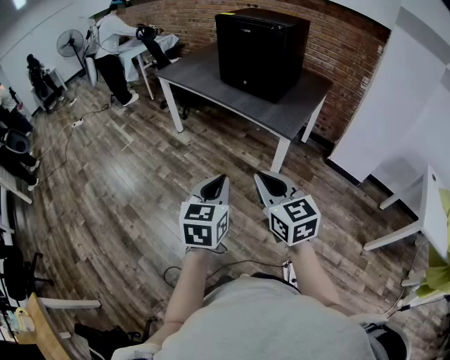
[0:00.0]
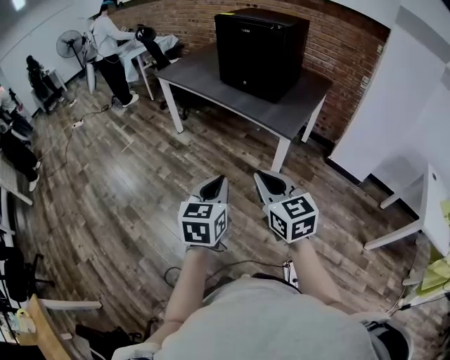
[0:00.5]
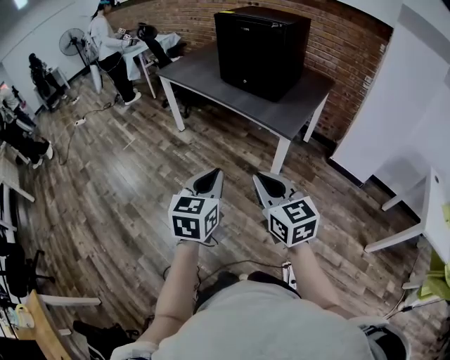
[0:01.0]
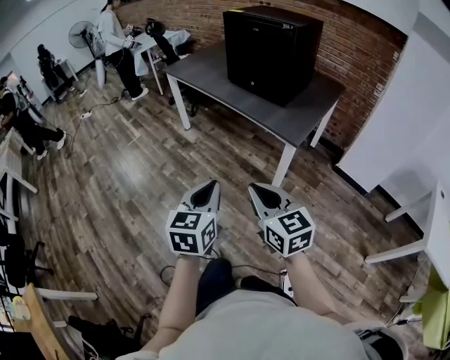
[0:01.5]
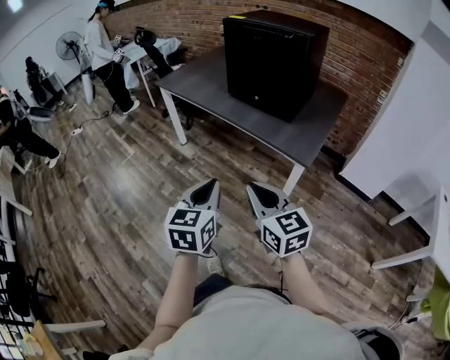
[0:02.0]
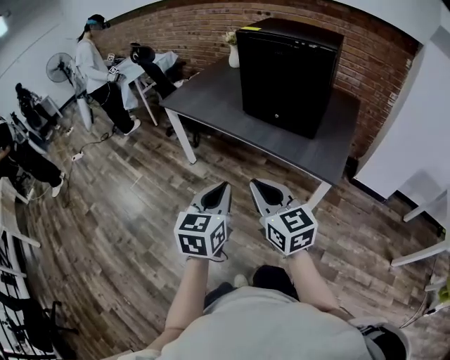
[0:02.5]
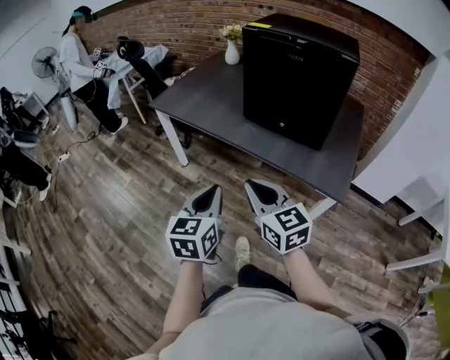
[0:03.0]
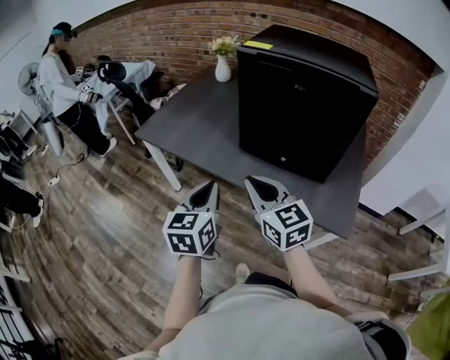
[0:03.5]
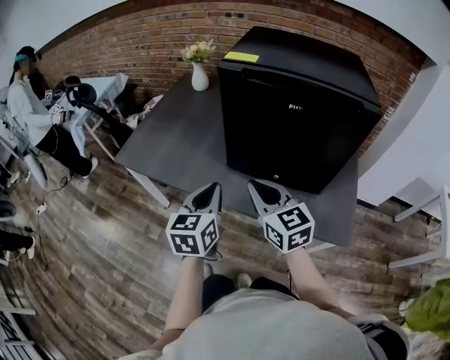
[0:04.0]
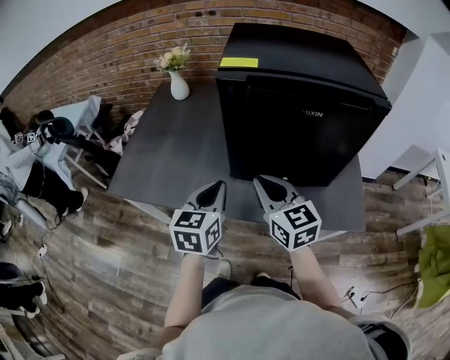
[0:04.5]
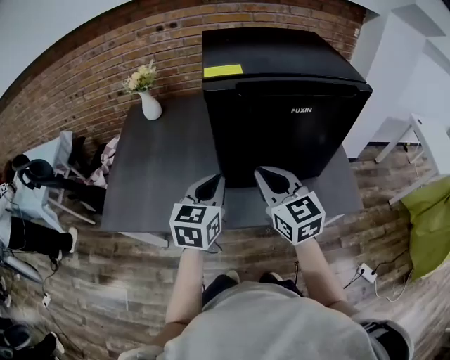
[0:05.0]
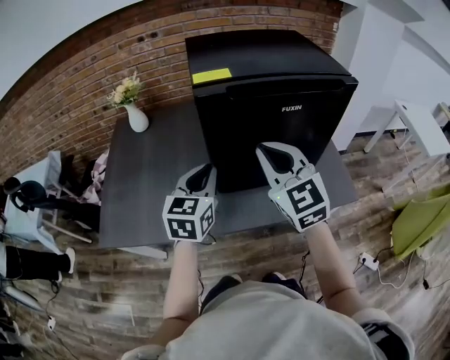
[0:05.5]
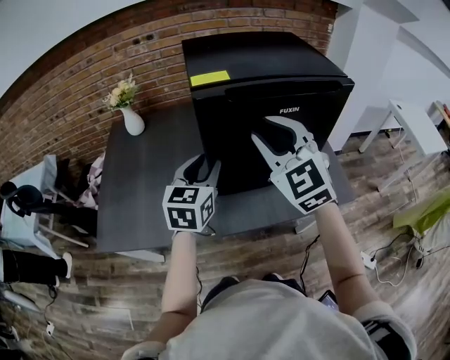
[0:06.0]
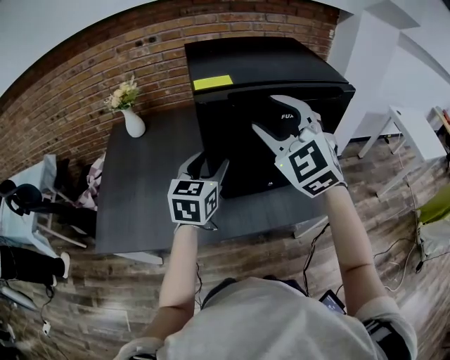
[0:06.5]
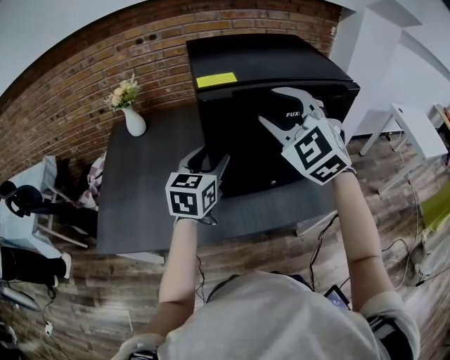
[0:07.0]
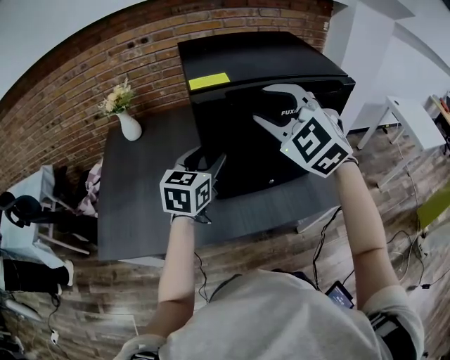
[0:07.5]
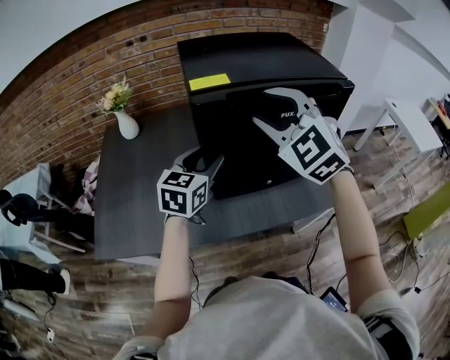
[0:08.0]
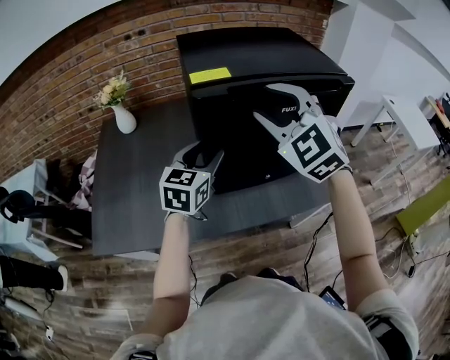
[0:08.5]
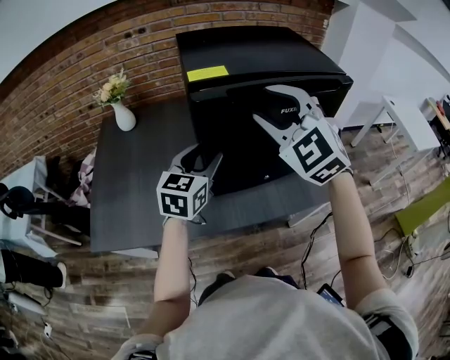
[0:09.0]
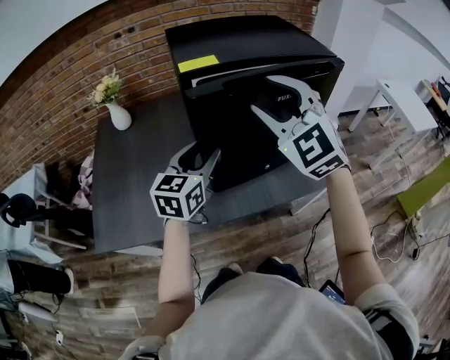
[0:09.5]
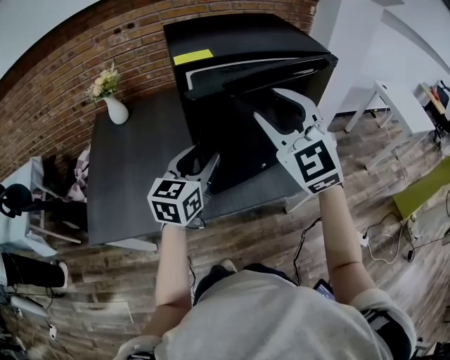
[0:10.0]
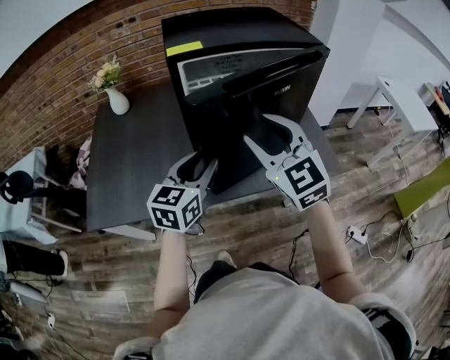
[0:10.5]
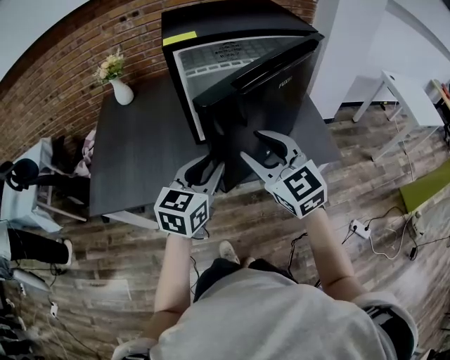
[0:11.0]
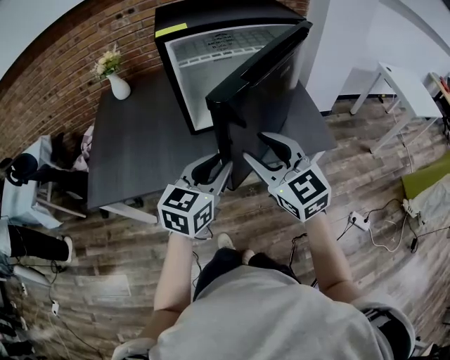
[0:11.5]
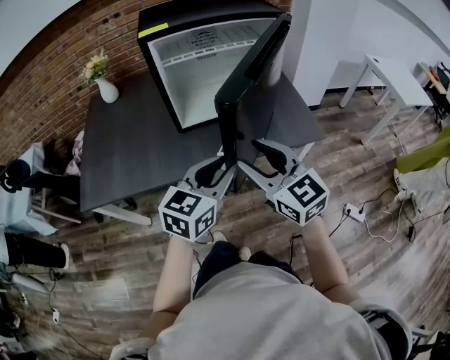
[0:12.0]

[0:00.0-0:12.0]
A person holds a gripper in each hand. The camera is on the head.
0:00.0 to 0:02.0: The two grippers go some 20 cm forward.
0:02.0 to 0:04.0: The two grippers travel together, forward, about 60 cm.
0:04.0 to 0:06.0: The right gripper heads upward, covering about 15 cm, turns by about 50 degrees, and opens up. Meanwhile the left gripper moves about 20 cm, swivels about 30 degrees, and opens its fingers.
0:06.0 to 0:08.0: The right gripper ends up some 5 cm from where it was.
0:08.0 to 0:10.0: Both grippers travel together backward, approximately 5 cm.
0:10.0 to 0:12.0: The right gripper is displaced backward and downward by roughly 25 cm, and swivels approximately 40 degrees; the left gripper goes roughly 25 cm backward and to the right, and closes.

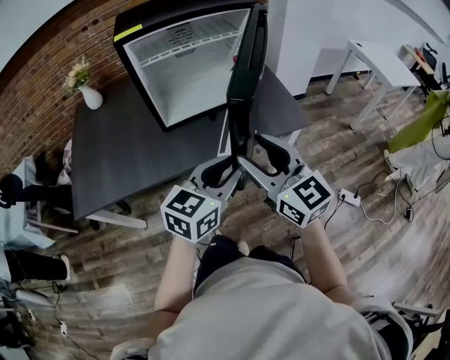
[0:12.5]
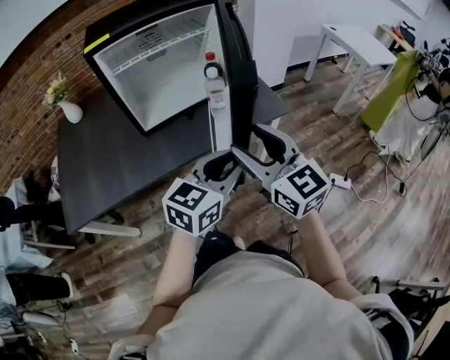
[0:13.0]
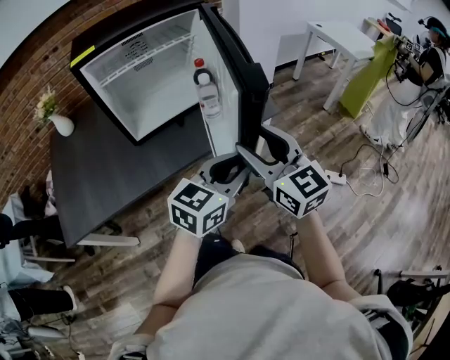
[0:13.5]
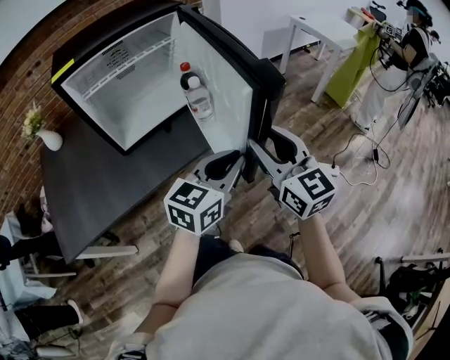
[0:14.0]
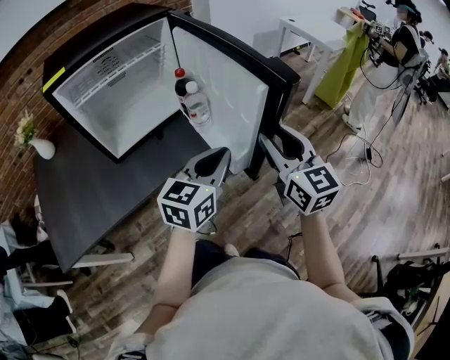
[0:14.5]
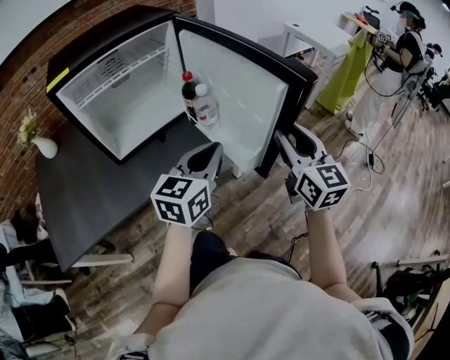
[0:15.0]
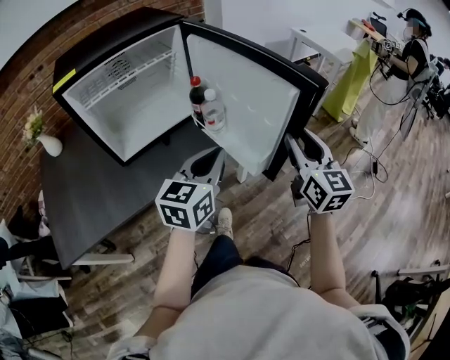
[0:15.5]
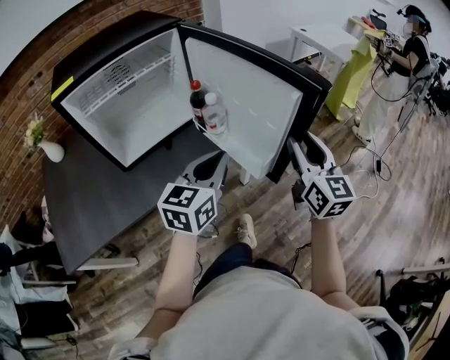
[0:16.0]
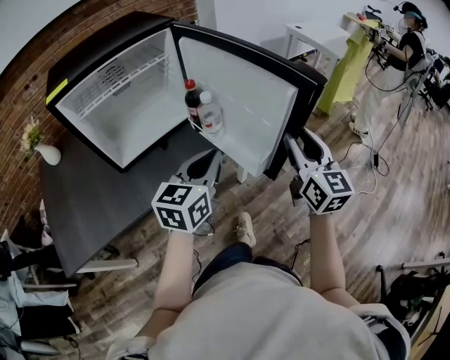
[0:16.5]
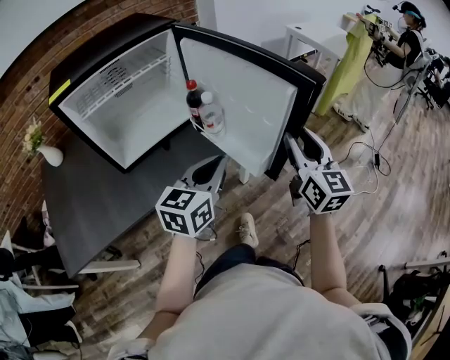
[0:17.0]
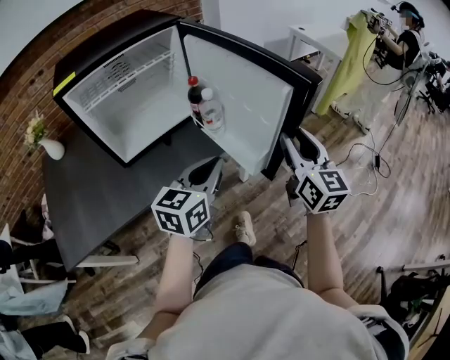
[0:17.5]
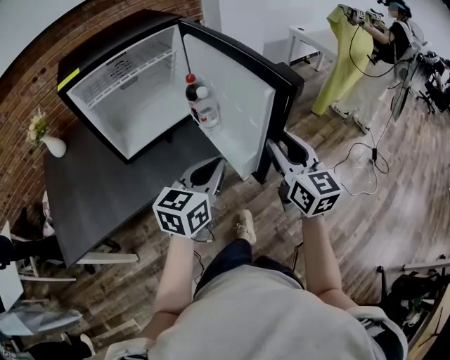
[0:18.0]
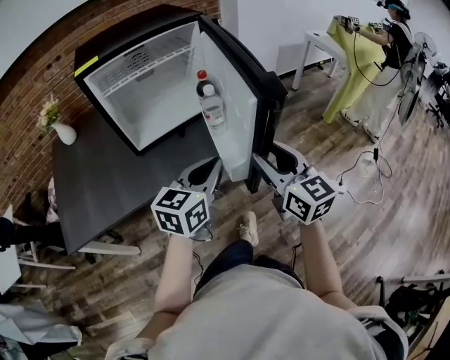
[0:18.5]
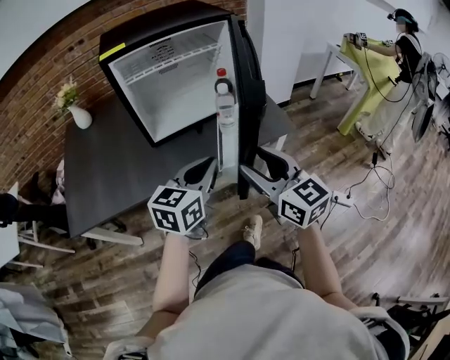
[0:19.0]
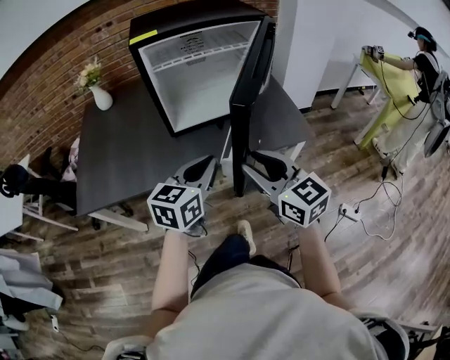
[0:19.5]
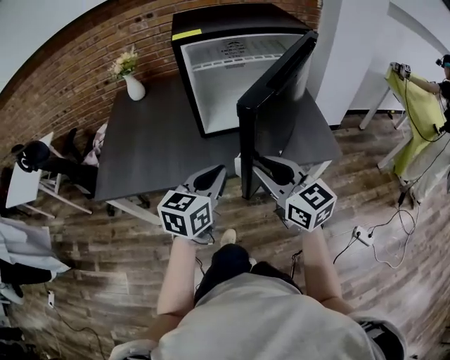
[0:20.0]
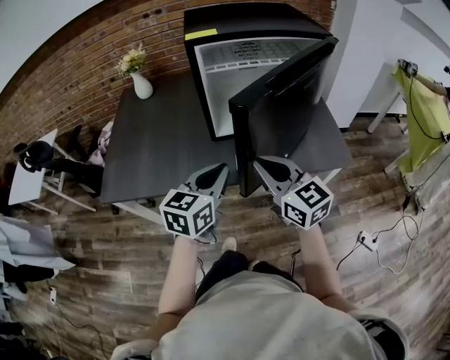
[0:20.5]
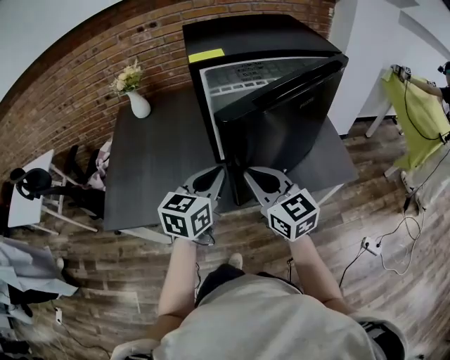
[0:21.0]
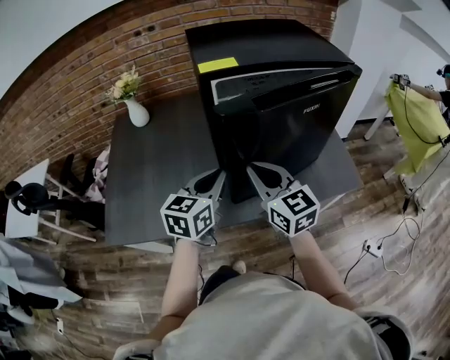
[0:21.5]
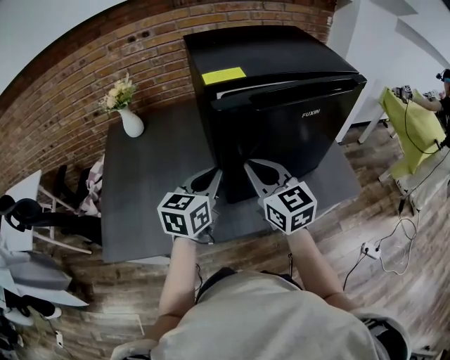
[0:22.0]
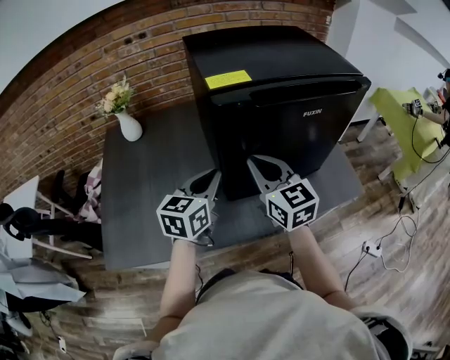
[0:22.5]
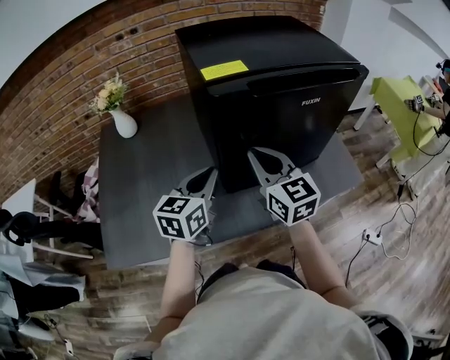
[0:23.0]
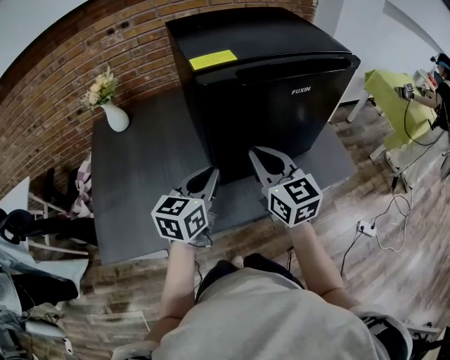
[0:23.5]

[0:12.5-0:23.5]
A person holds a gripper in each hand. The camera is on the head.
0:12.5 to 0:14.5: The right gripper moves to the right, about 20 cm, and turns by approximately 30 degrees. The left gripper travels to the right and forward by approximately 10 cm, and closes.
0:14.5 to 0:16.0: The right gripper heads to the right, covering some 5 cm.
0:16.0 to 0:18.0: The right gripper changes place by some 5 cm; the left gripper shifts roughly 5 cm backward.
0:18.0 to 0:20.0: The left gripper ends up roughly 20 cm from where it was, and changes its angle by about 30 degrees. The right gripper ends up about 25 cm from where it was, and rotates some 50 degrees.
0:20.0 to 0:21.5: Both grippers move forward and to the left, roughly 20 cm. The right gripper closes.

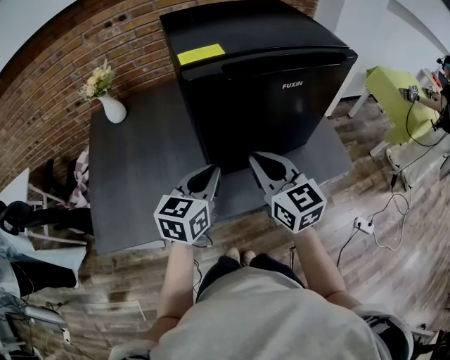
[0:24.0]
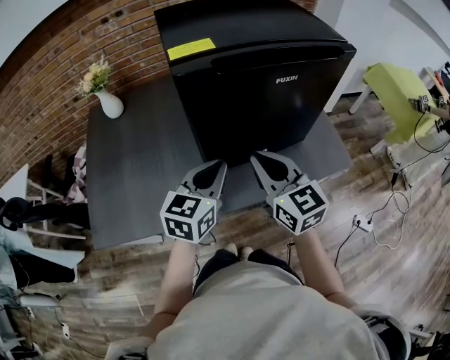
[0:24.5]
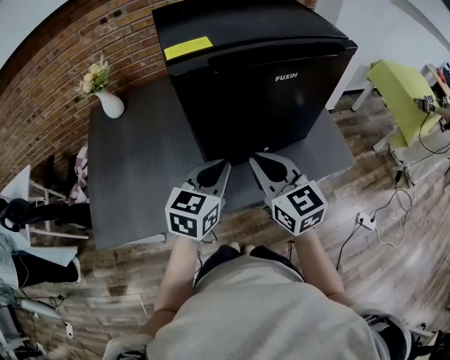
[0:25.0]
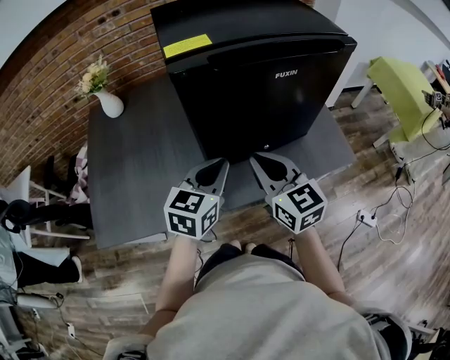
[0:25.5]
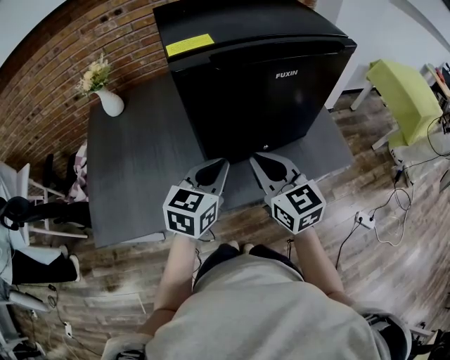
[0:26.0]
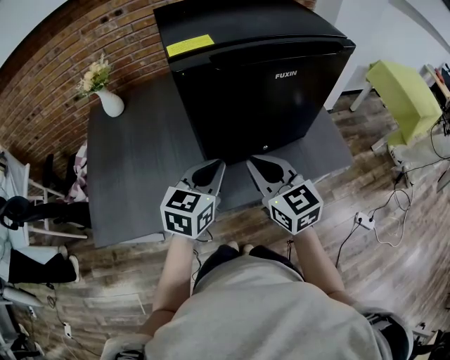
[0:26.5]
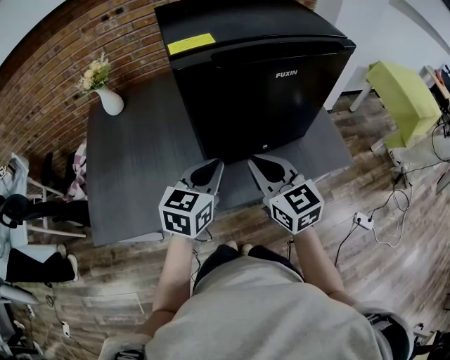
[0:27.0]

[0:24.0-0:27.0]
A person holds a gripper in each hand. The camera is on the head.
0:24.0 to 0:25.5: There are only small adjustments of the grippers.
0:25.5 to 0:27.0: Both grippers stay put.

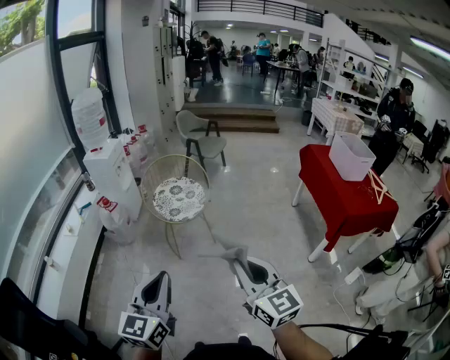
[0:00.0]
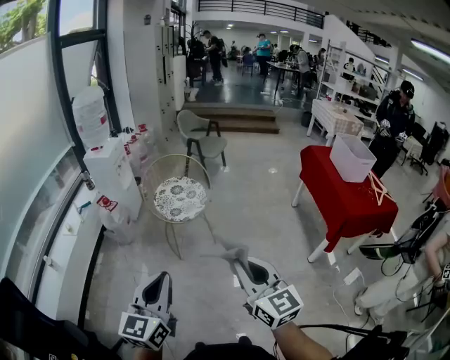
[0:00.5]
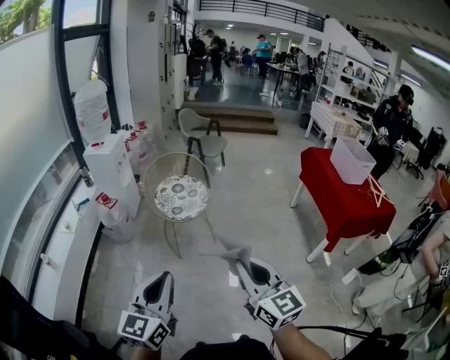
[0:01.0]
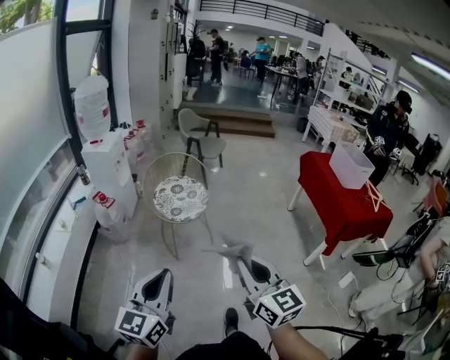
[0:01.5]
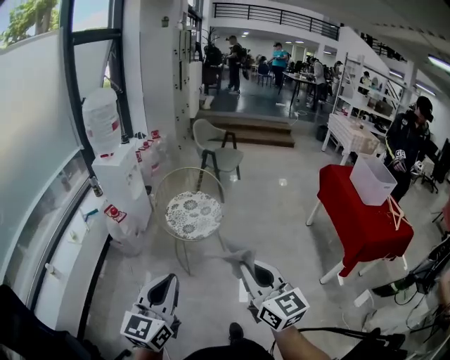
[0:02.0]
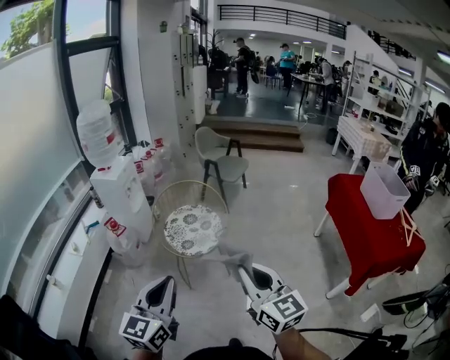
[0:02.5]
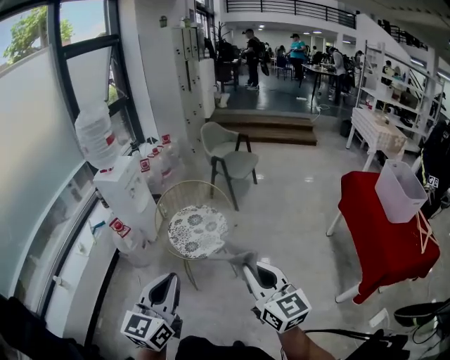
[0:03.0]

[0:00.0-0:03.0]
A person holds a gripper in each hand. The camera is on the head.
0:00.0 to 0:01.5: The two grippers go about 10 cm to the left.
0:01.5 to 0:03.0: Both grippers move forward and to the right, some 30 cm.
